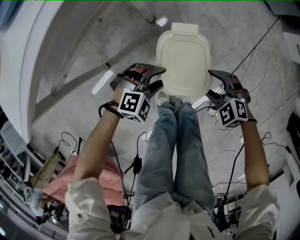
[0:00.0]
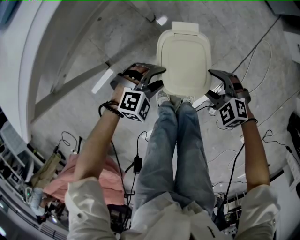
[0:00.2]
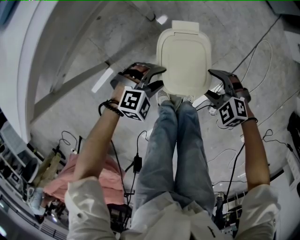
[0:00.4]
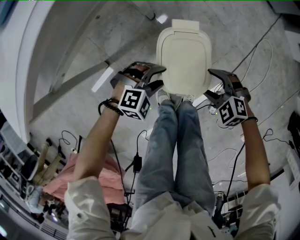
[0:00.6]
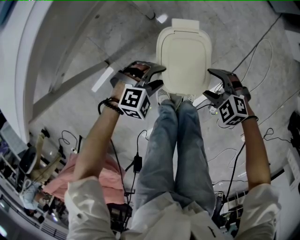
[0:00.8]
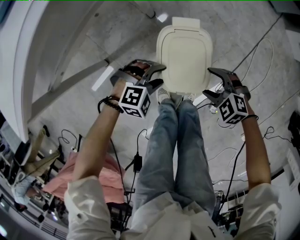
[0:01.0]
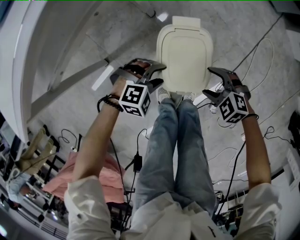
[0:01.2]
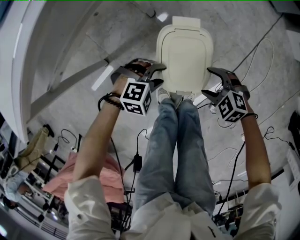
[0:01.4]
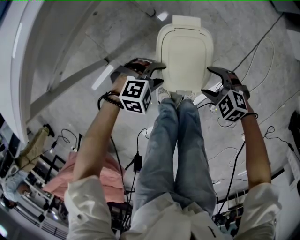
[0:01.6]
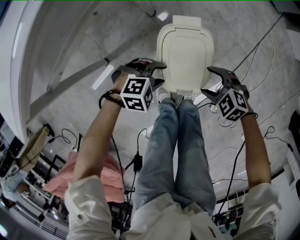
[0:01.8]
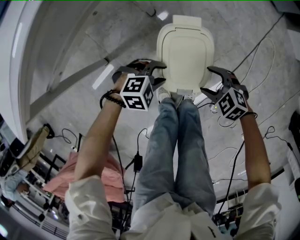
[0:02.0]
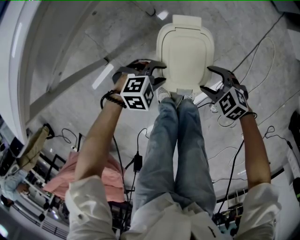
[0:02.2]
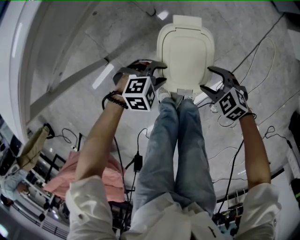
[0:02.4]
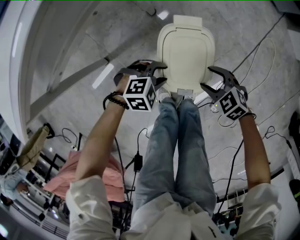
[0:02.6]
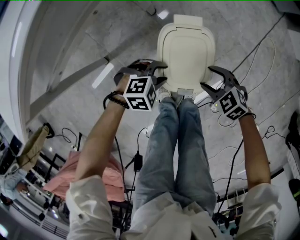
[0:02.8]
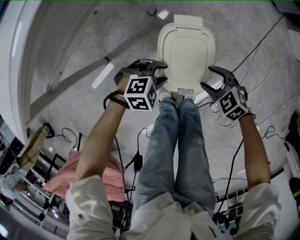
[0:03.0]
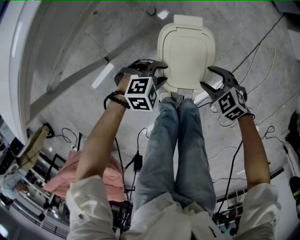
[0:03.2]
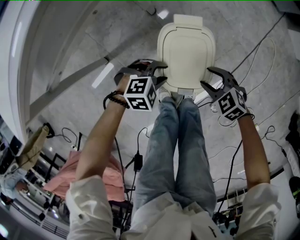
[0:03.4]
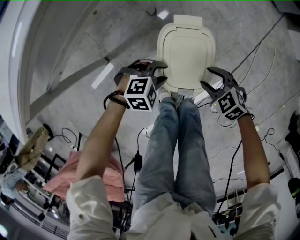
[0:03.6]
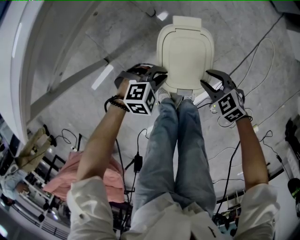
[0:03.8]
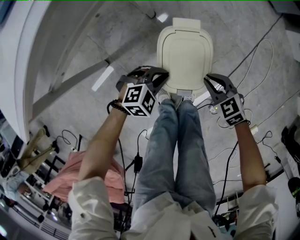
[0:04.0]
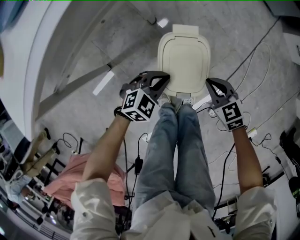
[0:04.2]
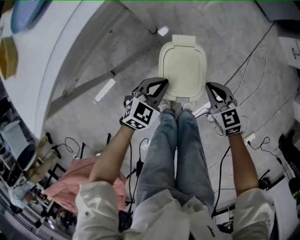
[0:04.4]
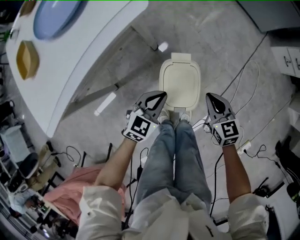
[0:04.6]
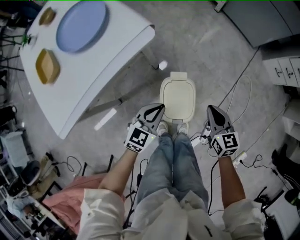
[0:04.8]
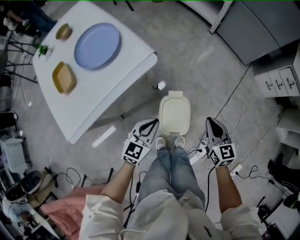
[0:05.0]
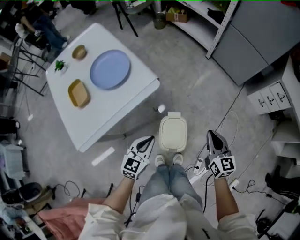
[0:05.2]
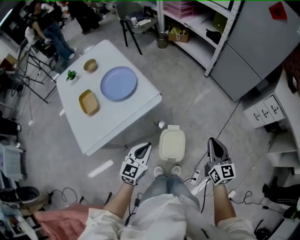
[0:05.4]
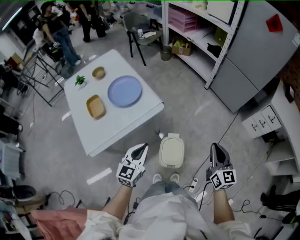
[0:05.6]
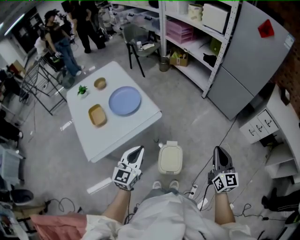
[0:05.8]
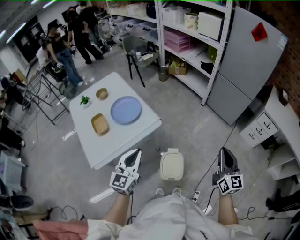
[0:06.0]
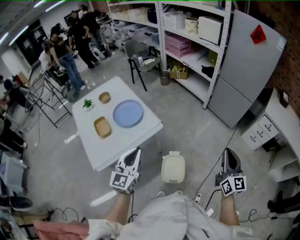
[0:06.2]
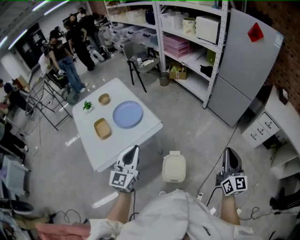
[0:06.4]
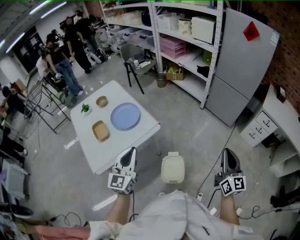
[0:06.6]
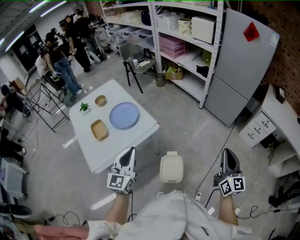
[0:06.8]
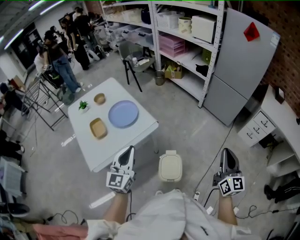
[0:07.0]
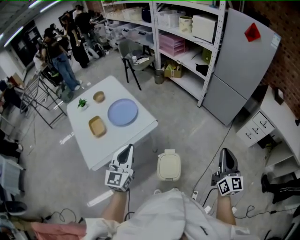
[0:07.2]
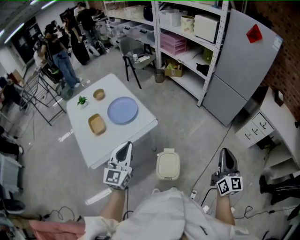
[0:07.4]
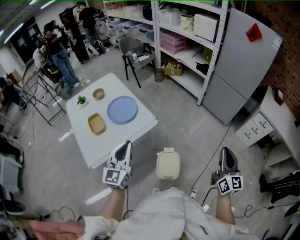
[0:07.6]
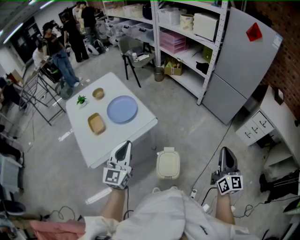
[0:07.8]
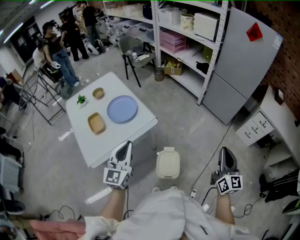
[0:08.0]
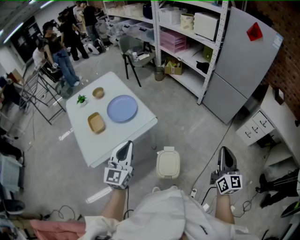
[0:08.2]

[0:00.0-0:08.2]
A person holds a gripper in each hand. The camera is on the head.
0:00.0 to 0:03.2: The grippers stay close to where they were, moving slightly.
0:03.2 to 0:05.0: Both grippers move upward, some 40 cm. The right gripper tilts its fingers roughly 30 degrees upward, and closes up; the left gripper angles its fingers upward, by some 40 degrees, and closes its fingers.
0:05.0 to 0:06.6: Both grippers travel together upward, some 35 cm. The left gripper rotates some 40 degrees, while the right gripper tips its fingers upward by about 30 degrees.
0:06.6 to 0:08.2: The grippers make only small movements.

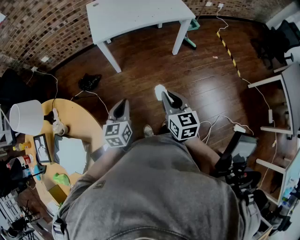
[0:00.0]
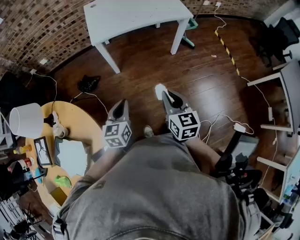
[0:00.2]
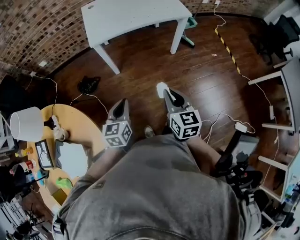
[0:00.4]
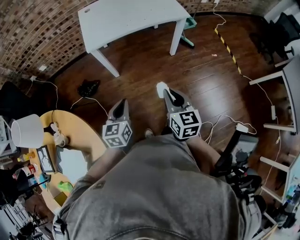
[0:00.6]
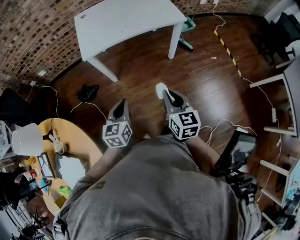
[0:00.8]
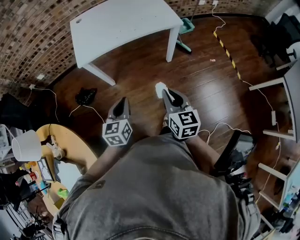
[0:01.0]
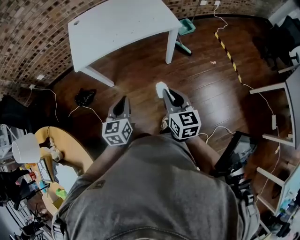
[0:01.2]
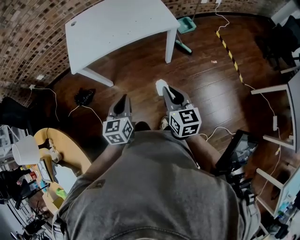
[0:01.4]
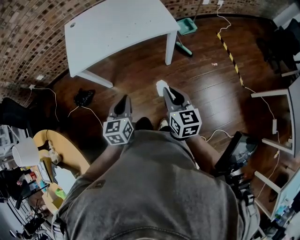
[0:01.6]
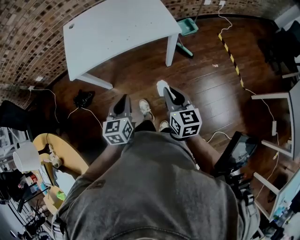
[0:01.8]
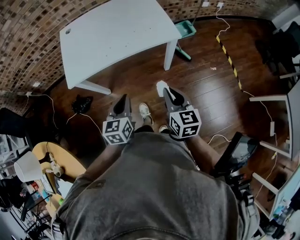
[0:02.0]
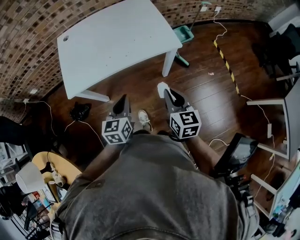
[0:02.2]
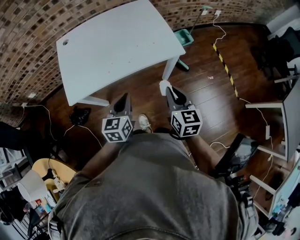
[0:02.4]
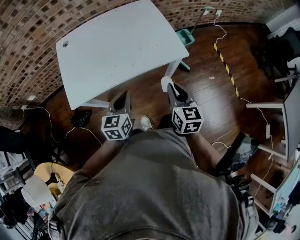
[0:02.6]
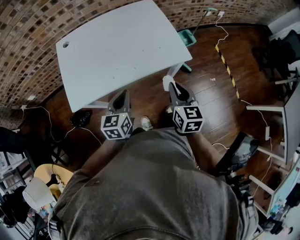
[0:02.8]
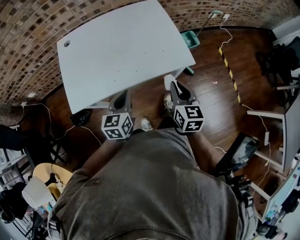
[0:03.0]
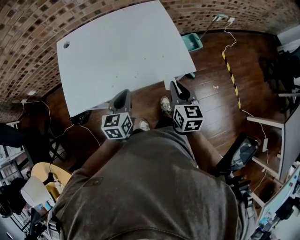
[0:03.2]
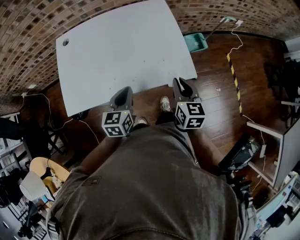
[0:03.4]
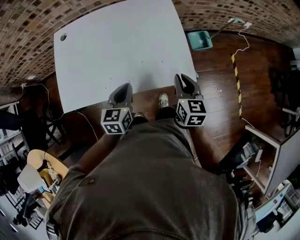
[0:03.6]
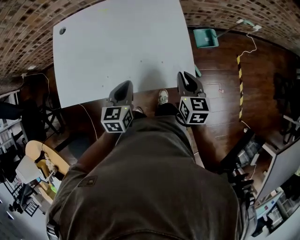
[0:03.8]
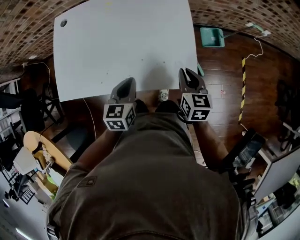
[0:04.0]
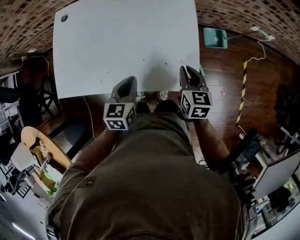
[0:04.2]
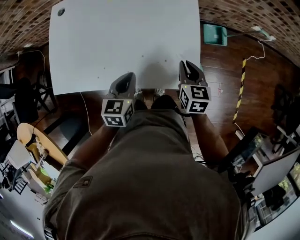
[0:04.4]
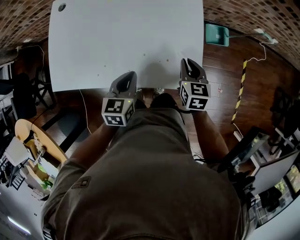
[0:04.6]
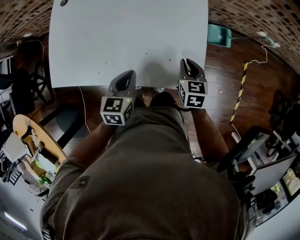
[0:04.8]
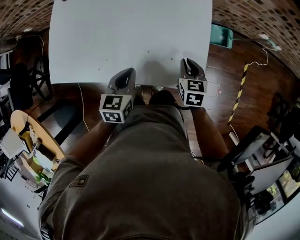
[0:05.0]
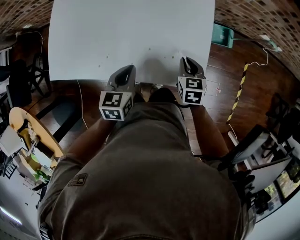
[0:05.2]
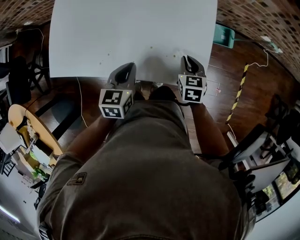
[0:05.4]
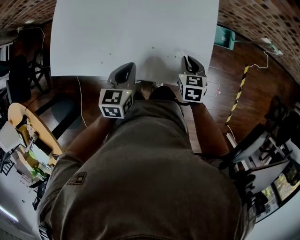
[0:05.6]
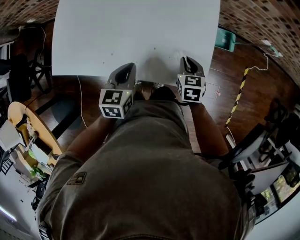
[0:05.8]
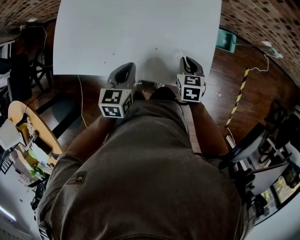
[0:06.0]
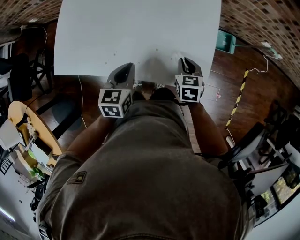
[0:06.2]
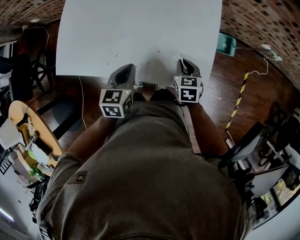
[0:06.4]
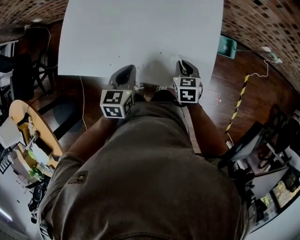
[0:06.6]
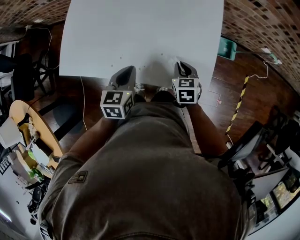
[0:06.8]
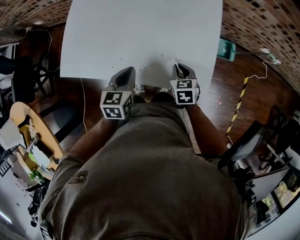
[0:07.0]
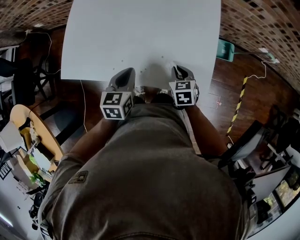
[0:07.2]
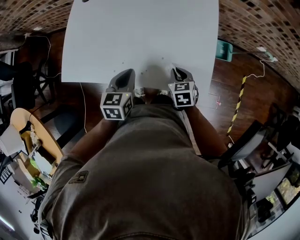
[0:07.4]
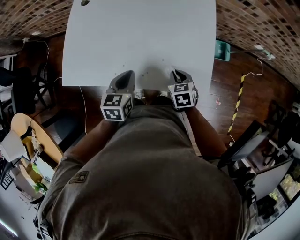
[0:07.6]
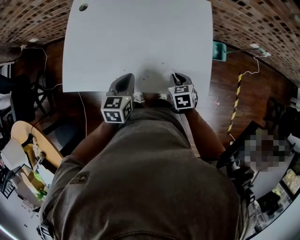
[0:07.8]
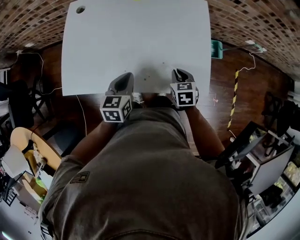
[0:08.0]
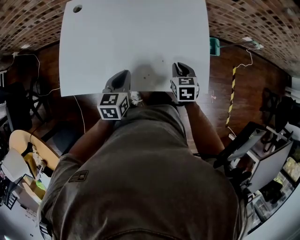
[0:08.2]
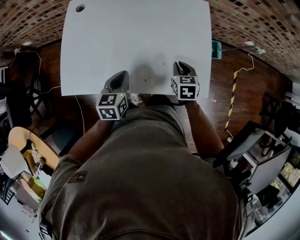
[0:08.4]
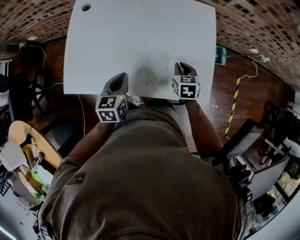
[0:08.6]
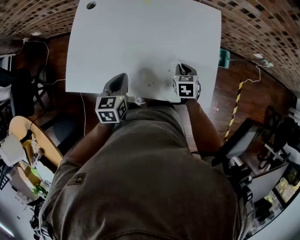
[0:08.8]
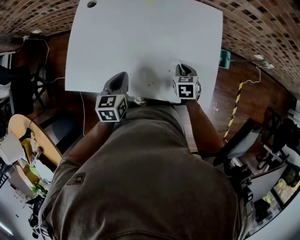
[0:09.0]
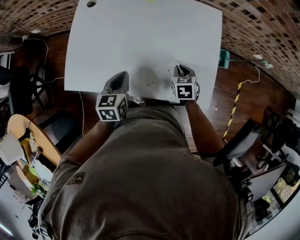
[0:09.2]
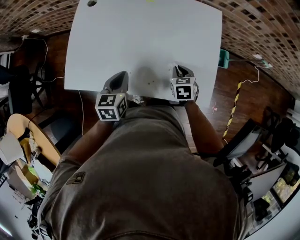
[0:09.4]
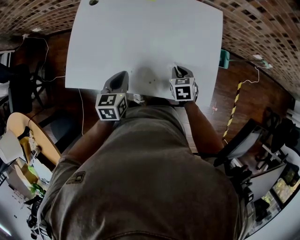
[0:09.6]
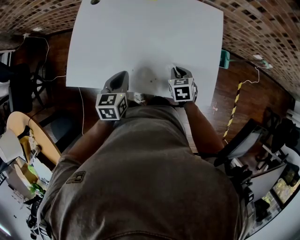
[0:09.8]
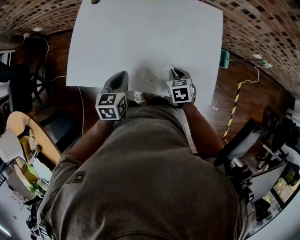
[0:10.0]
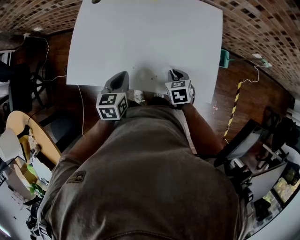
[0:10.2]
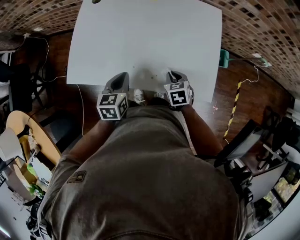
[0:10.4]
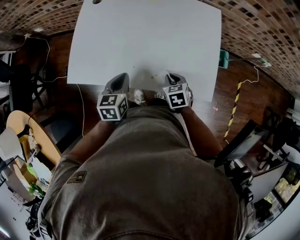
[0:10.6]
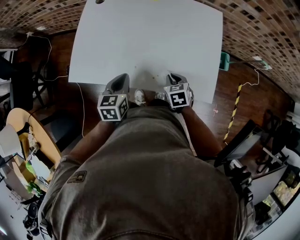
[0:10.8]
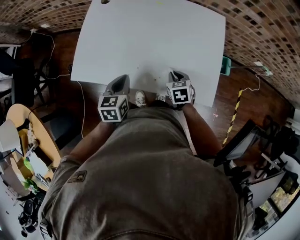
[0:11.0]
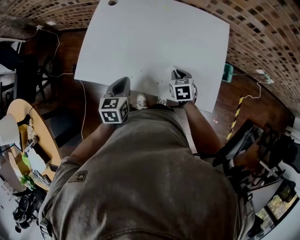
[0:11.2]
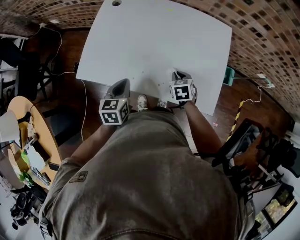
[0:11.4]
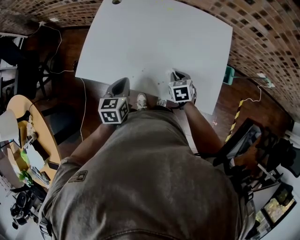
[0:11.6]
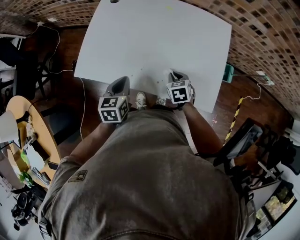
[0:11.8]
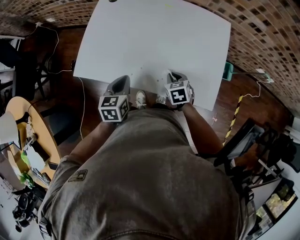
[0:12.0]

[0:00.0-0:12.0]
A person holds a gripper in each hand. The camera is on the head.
0:00.0 to 0:01.6: The grippers both shift forward and to the right by about 30 cm.
0:01.6 to 0:03.0: The grippers both shift forward by approximately 30 cm.
0:03.0 to 0:04.4: The right gripper goes roughly 25 cm forward and downward, and changes its angle by approximately 20 degrees; the left gripper shifts approximately 15 cm forward, to the right and downward.
0:04.4 to 0:06.0: The right gripper moves downward, approximately 5 cm.
0:06.0 to 0:07.6: The right gripper is displaced to the left by some 5 cm.
0:07.6 to 0:09.0: The left gripper moves to the left, some 5 cm; the right gripper heads forward, covering about 10 cm.
0:09.0 to 0:10.4: The right gripper goes roughly 10 cm backward and to the left.
0:10.4 to 0:12.0: The grippers move only a little.

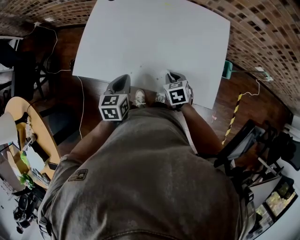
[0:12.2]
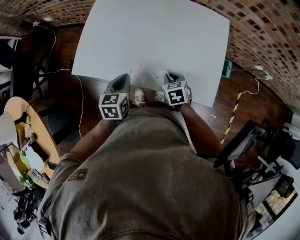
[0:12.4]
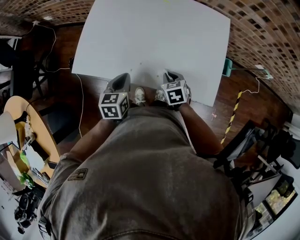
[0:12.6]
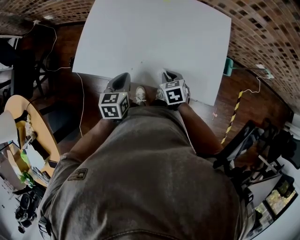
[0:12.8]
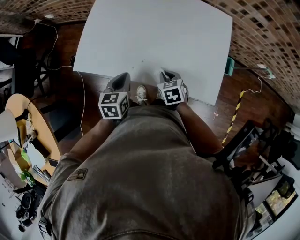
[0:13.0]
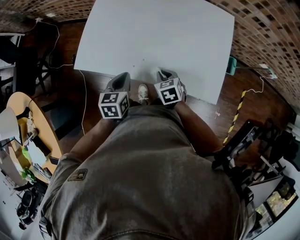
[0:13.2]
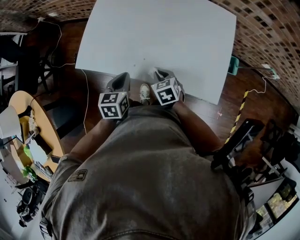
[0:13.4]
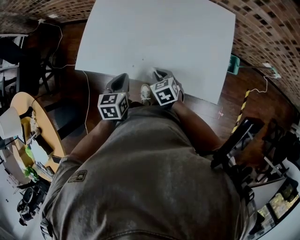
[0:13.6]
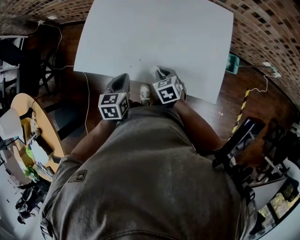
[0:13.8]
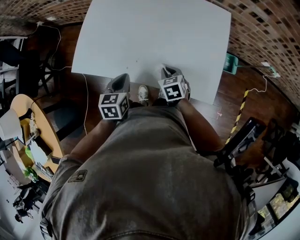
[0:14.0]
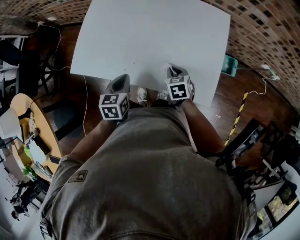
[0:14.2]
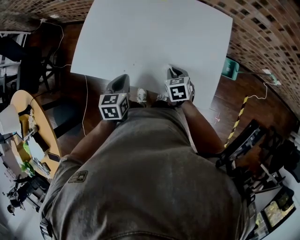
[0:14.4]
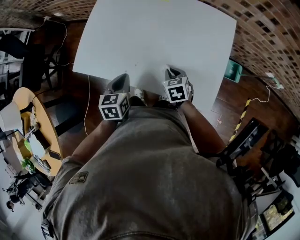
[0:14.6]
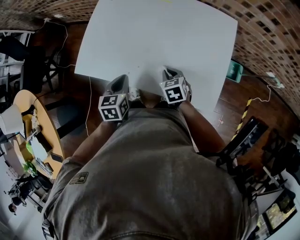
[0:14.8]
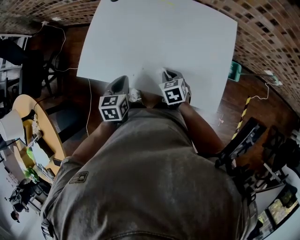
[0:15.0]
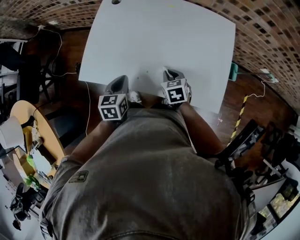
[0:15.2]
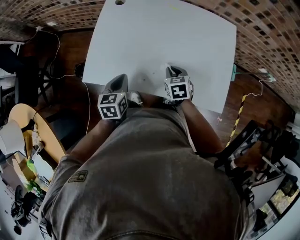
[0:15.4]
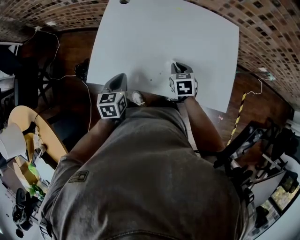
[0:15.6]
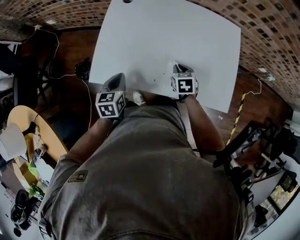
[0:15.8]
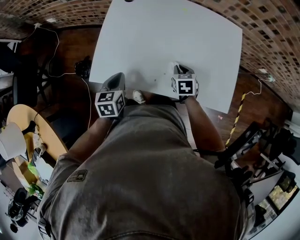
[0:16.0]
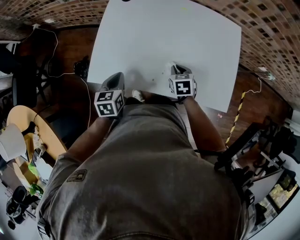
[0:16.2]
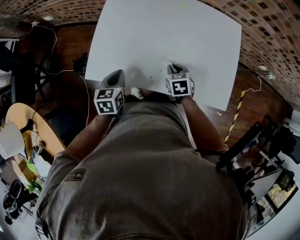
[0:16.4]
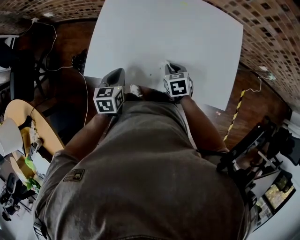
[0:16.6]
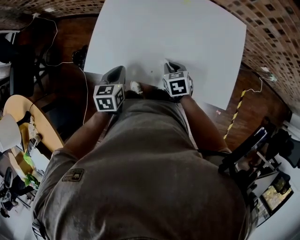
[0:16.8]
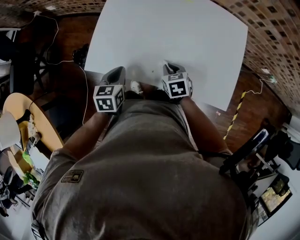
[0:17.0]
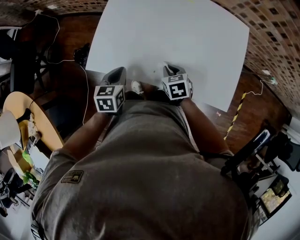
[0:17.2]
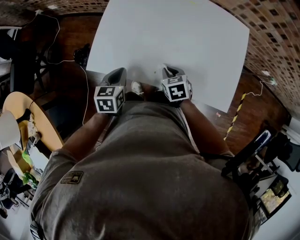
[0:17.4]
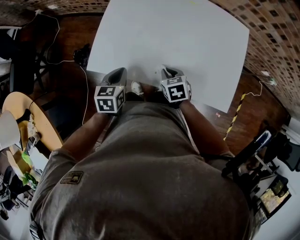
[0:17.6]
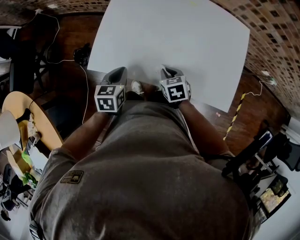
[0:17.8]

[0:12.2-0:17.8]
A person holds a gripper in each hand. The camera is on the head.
0:12.2 to 0:13.6: The right gripper shifts approximately 10 cm to the left.
0:15.0 to 0:16.4: The left gripper heads to the left, covering some 10 cm; the right gripper travels to the left by roughly 5 cm.
0:16.4 to 0:17.8: The right gripper heads to the left, covering approximately 5 cm.
